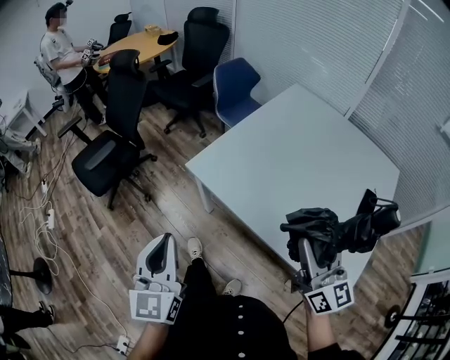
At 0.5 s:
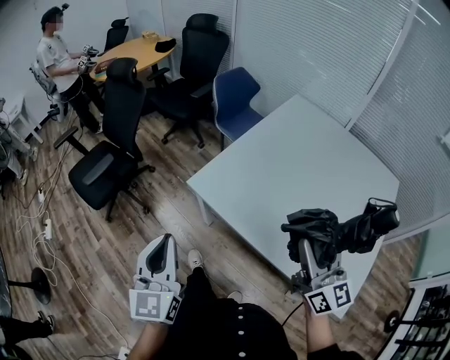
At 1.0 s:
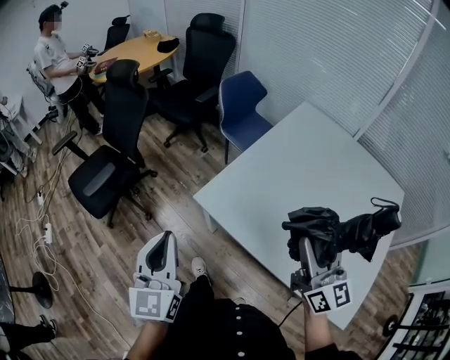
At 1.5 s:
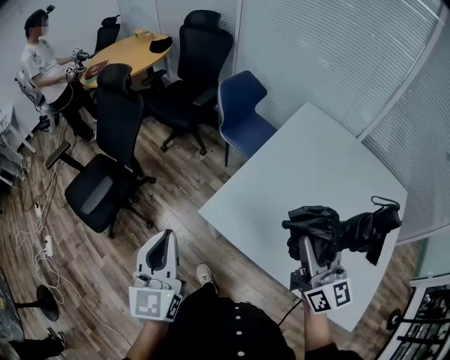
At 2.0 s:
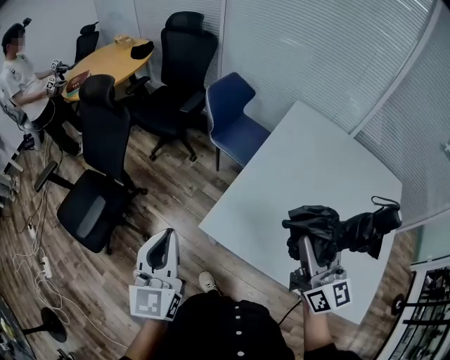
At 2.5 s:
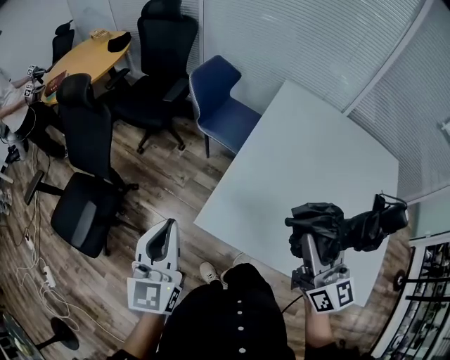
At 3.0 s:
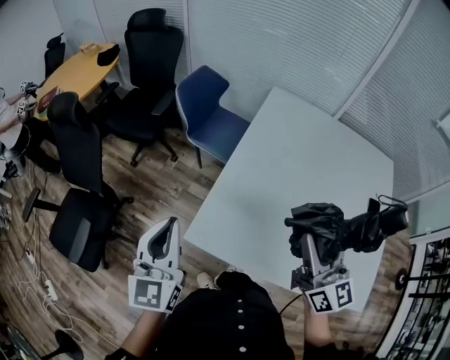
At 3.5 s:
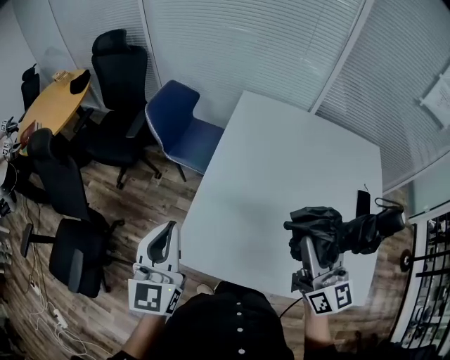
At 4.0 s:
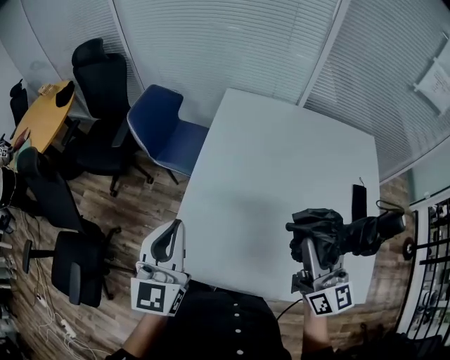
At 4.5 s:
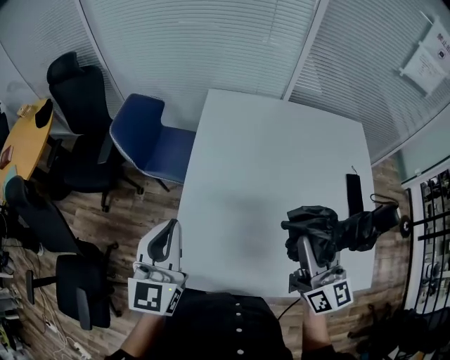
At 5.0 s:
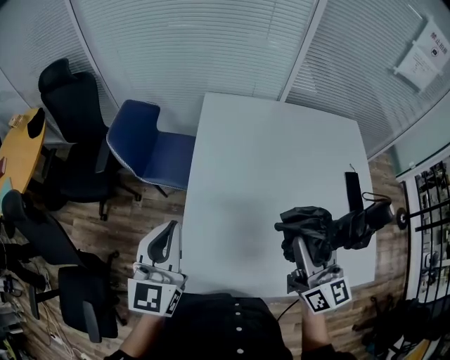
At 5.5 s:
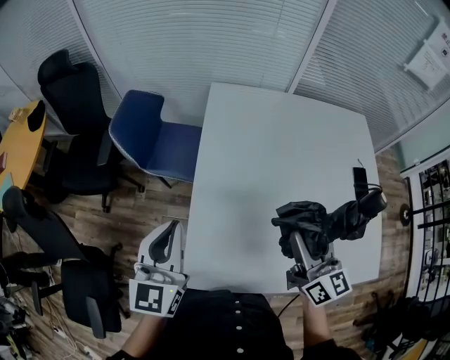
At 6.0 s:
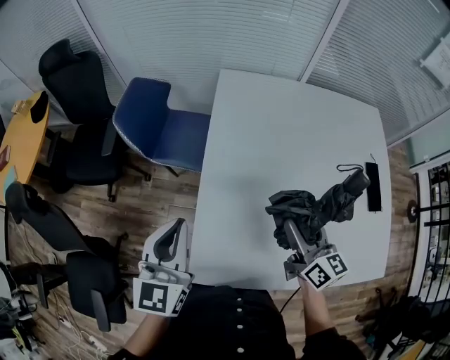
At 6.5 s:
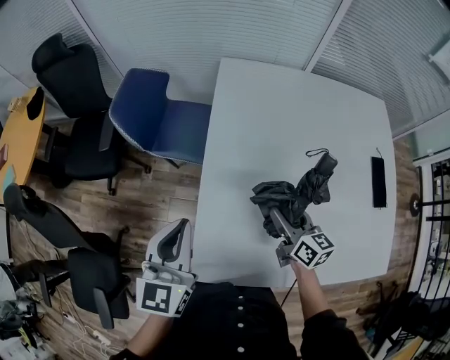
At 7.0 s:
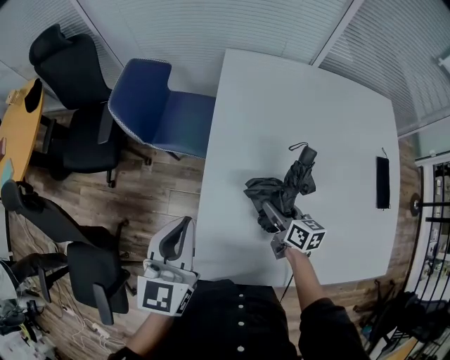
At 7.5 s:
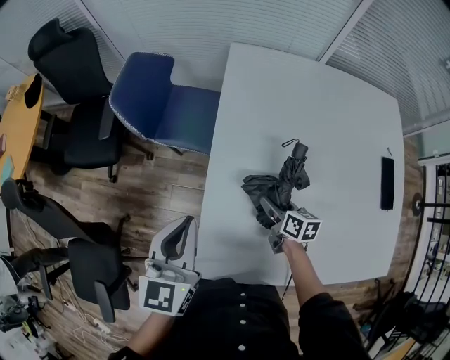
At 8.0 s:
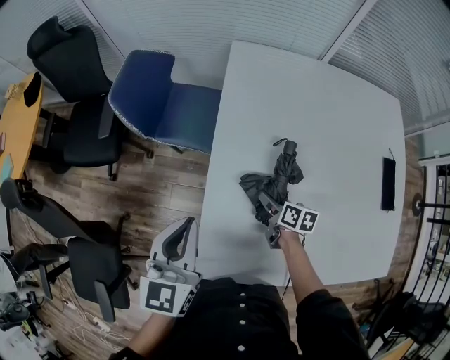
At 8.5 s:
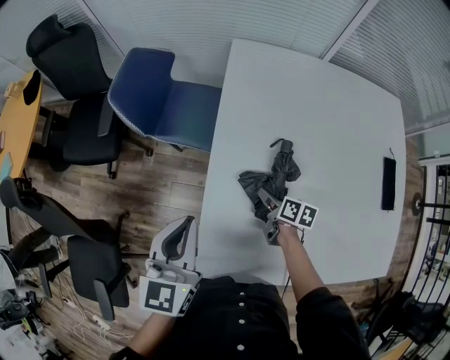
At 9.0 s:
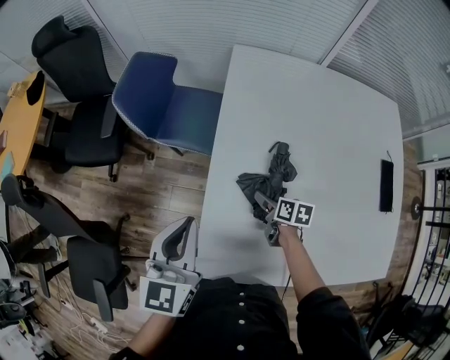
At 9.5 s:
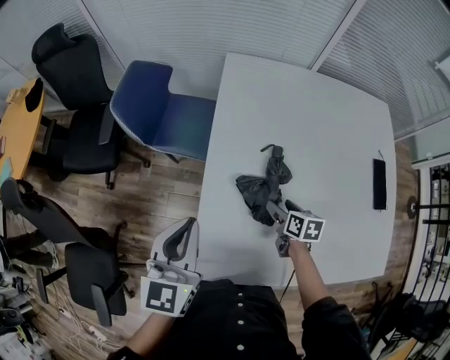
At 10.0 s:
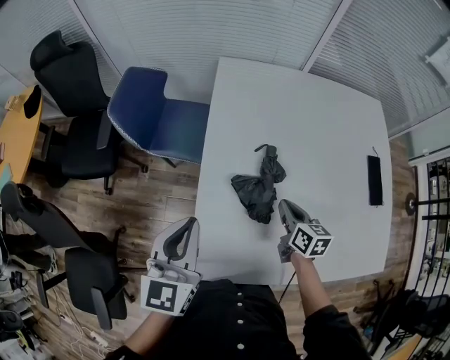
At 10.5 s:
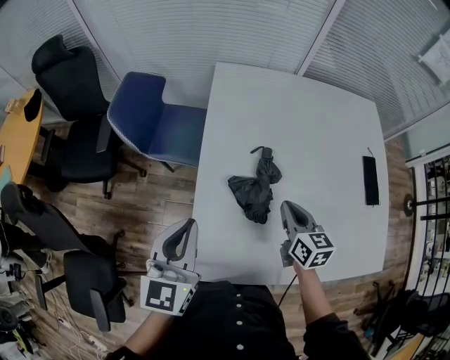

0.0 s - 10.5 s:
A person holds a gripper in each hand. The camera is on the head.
0.0 s - 2.0 s: The right gripper travels forward and to the left by about 25 cm. The left gripper goes some 30 cm forward.
2.0 s - 4.0 s: The right gripper goes roughly 15 cm to the right, and rotates about 20 degrees; the left gripper travels to the right and forward by approximately 25 cm, and swivels some 20 degrees.
4.0 s - 6.5 s: The left gripper is displaced forward, to the left and downward by some 10 cm; the right gripper moves downward, to the left and forward, about 25 cm, and rotates some 30 degrees.
6.5 s - 8.5 s: The right gripper is displaced downward by roughly 15 cm, and swivels about 30 degrees.
8.5 s - 10.5 s: The left gripper shifts by some 5 cm; the right gripper shifts about 20 cm upward, turns by roughly 40 degrees, and closes.

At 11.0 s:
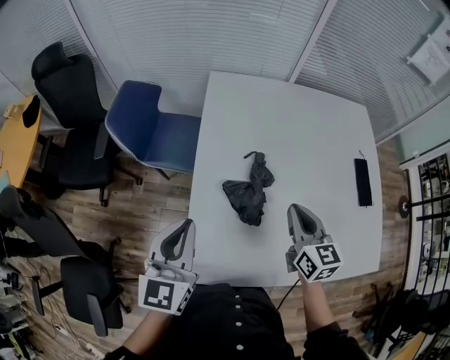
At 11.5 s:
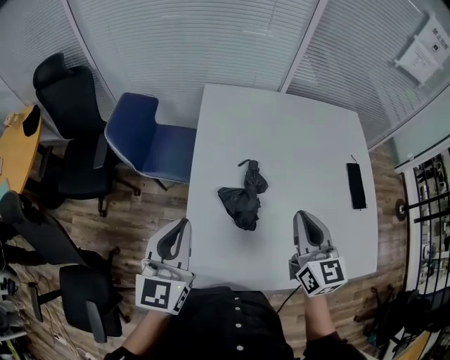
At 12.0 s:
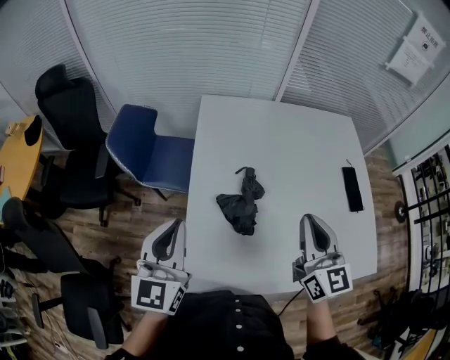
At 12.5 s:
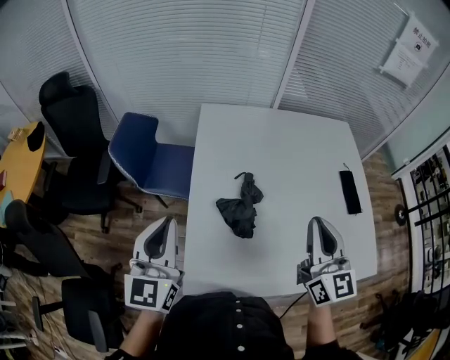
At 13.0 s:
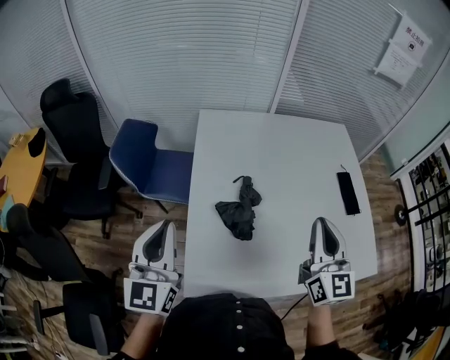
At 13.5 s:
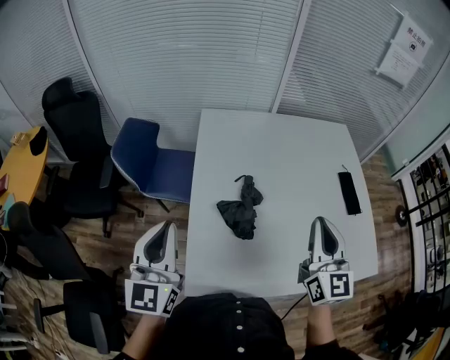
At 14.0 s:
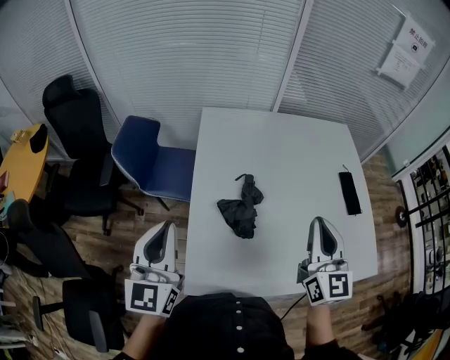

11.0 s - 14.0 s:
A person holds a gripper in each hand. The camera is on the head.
11.0 s - 12.5 s: The left gripper is displaced upward by approximately 5 cm. The right gripper moves upward, roughly 15 cm, and changes its angle by approximately 20 degrees.
12.5 s - 14.0 s: There are only small adjustments of the grippers.

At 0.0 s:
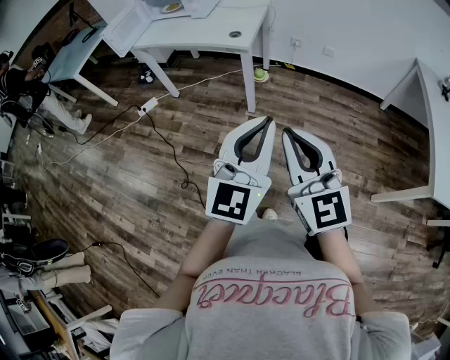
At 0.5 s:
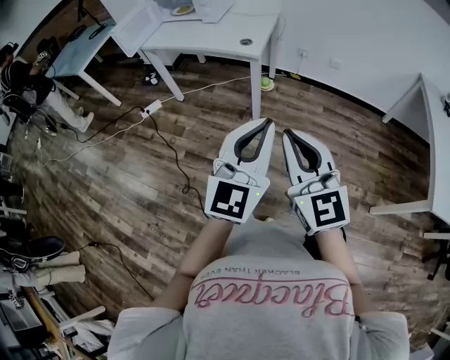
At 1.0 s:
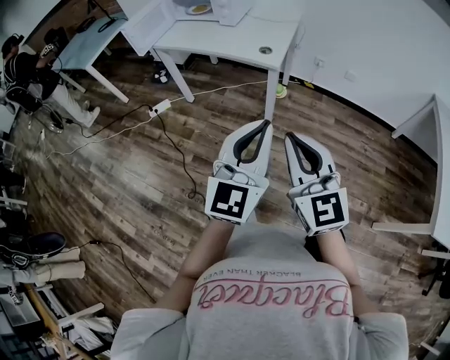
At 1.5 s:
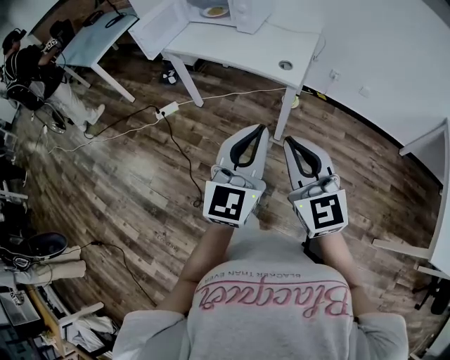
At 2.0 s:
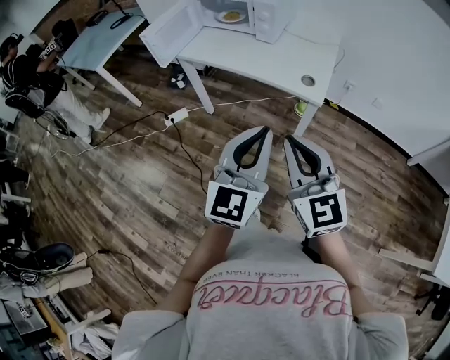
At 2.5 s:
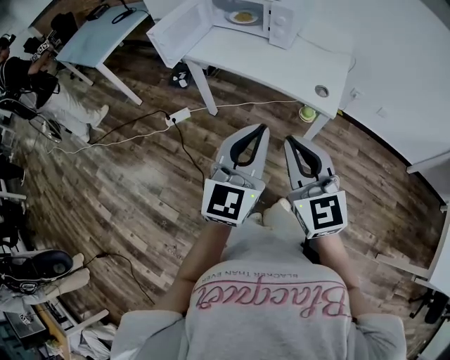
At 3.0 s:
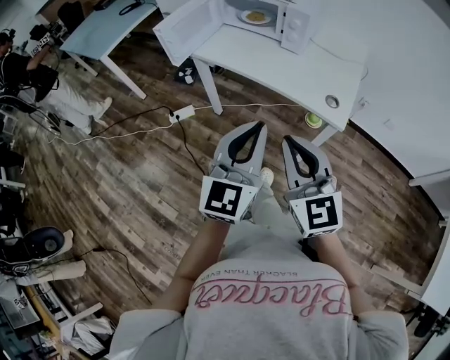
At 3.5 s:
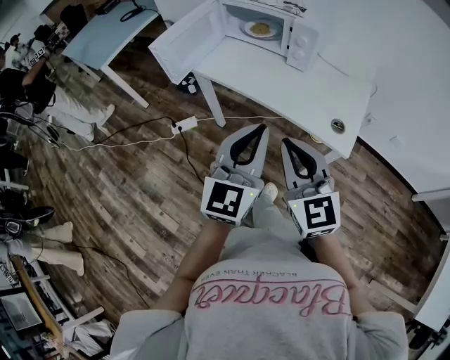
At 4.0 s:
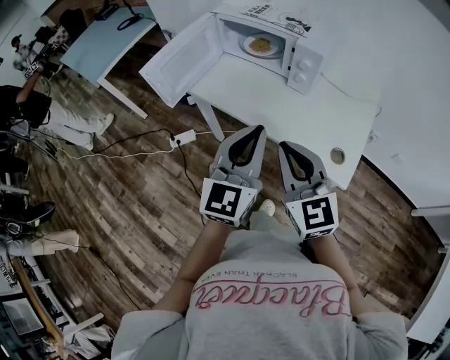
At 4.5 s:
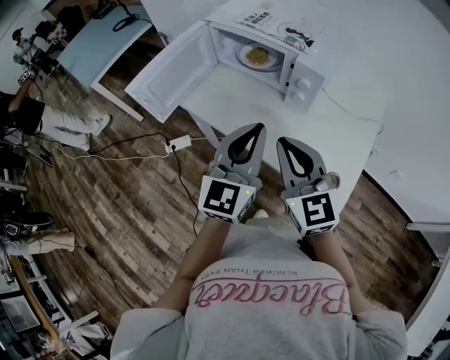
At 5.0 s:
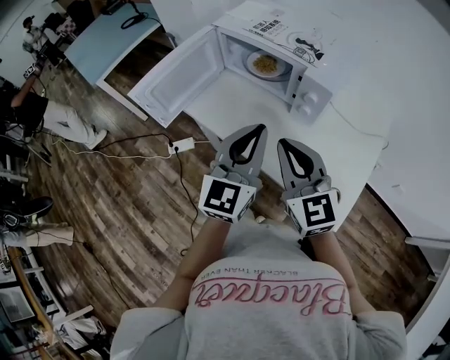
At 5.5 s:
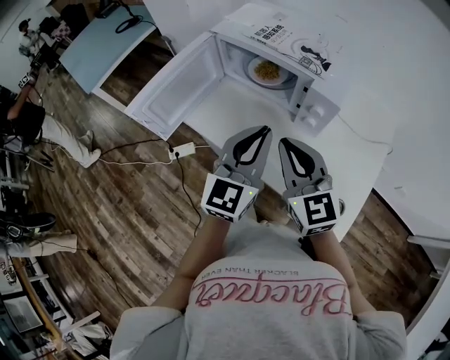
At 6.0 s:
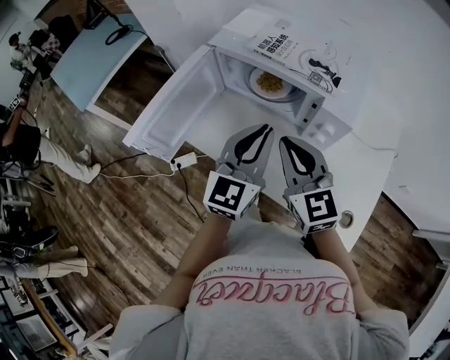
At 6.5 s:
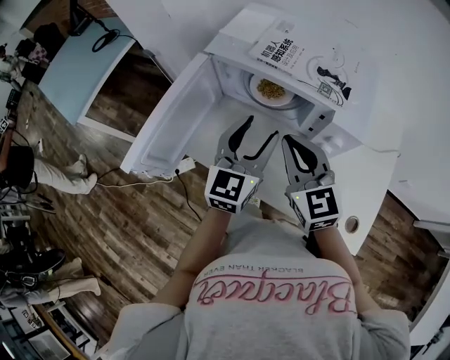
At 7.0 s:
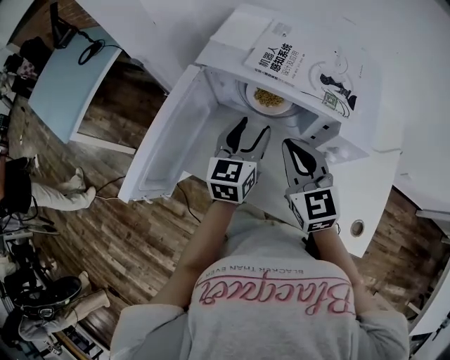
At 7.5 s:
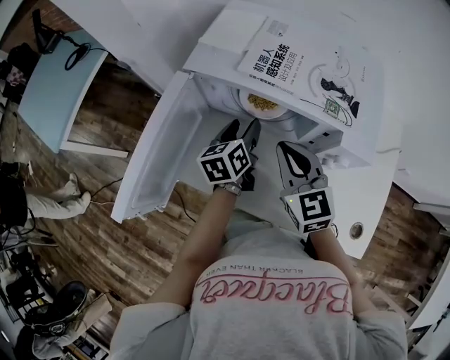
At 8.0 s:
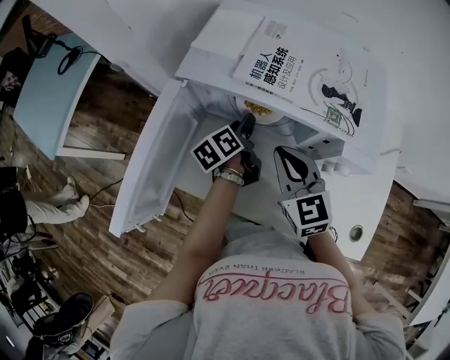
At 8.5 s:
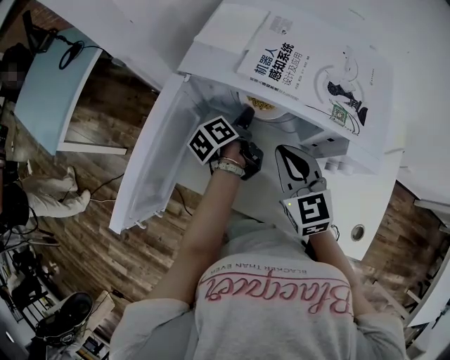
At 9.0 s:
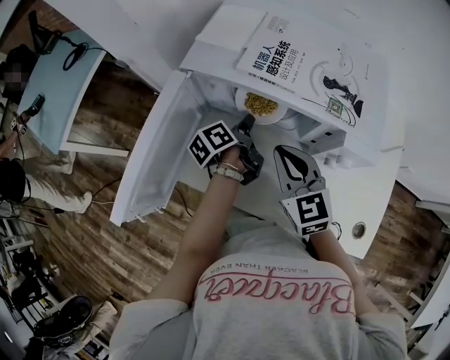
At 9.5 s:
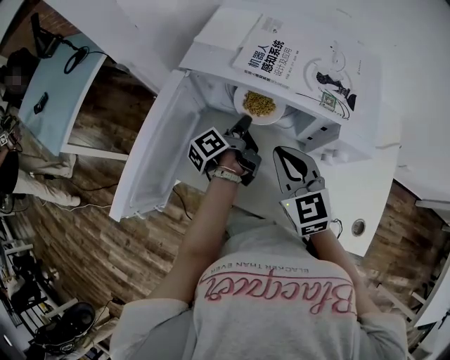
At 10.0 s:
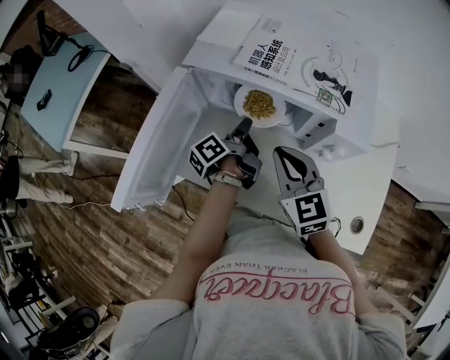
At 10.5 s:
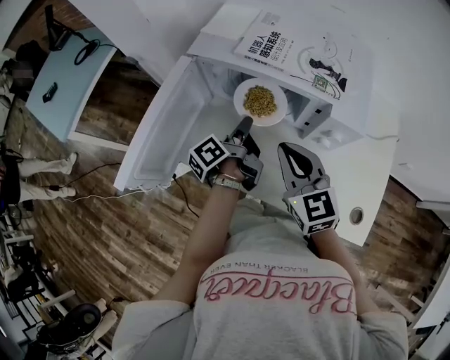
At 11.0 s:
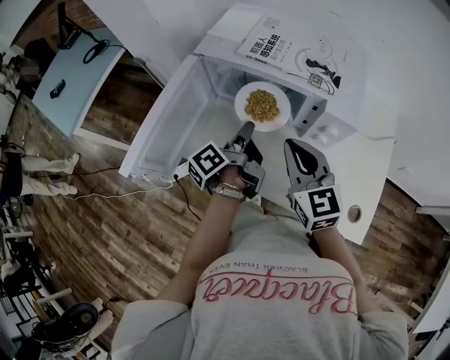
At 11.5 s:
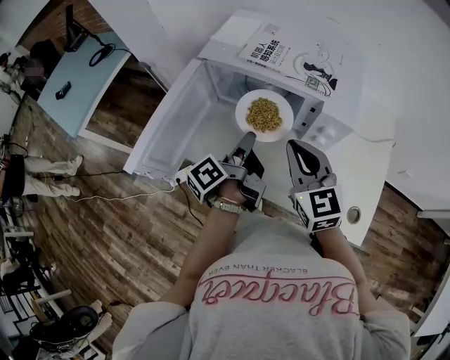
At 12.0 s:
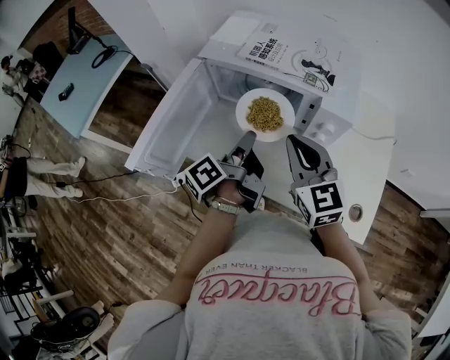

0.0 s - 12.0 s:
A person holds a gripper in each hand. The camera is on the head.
0.0 s - 2.0 s: The two grippers go about 35 cm forward and to the left.
2.0 s - 4.0 s: The two grippers go about 30 cm forward.
4.0 s - 6.0 s: Both grippers move forward, about 25 cm.
6.0 s - 8.0 s: The right gripper heads forward and downward, covering about 15 cm; the left gripper travels forward and downward by approximately 30 cm, rolls counterclockwise, seen from behind, by approximately 60 degrees, and opens.
8.0 s - 10.0 s: The left gripper shifts by approximately 5 cm, swivels about 30 degrees, and closes up.
10.0 s - 12.0 s: The right gripper travels upward and backward by about 10 cm; the left gripper heads backward and upward, covering about 15 cm.

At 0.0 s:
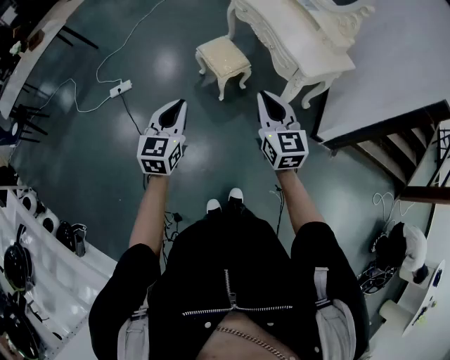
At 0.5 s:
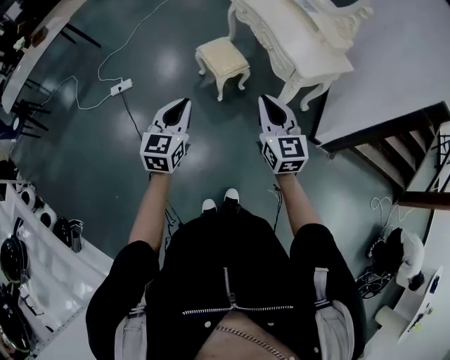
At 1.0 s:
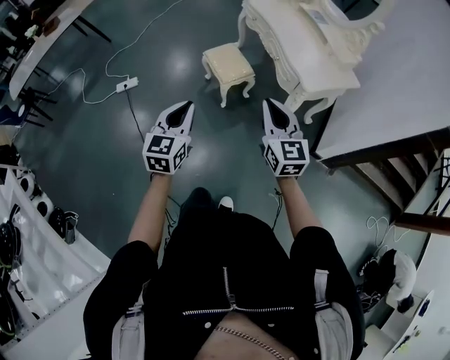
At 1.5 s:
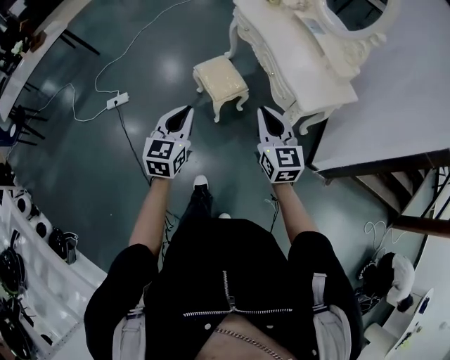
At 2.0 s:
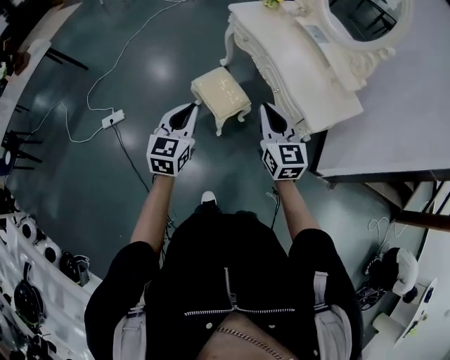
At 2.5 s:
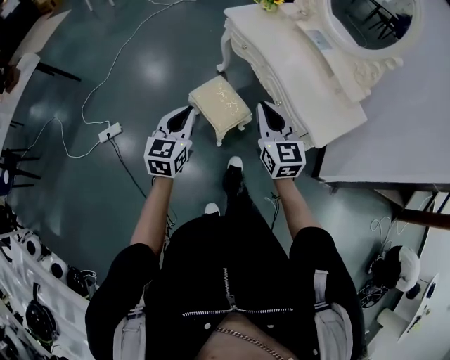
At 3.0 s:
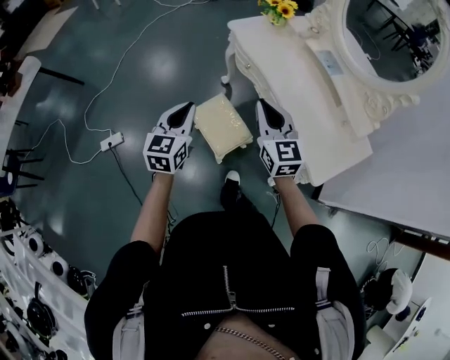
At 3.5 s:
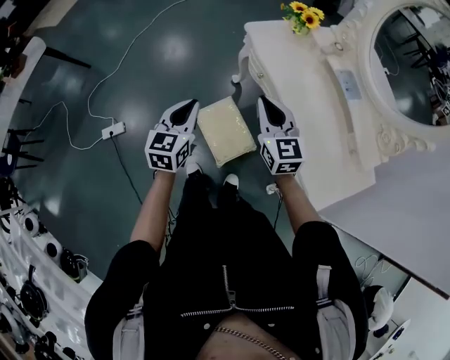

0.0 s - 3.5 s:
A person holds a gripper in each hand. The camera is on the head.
0.0 s - 2.0 s: Both grippers travel together forward, about 30 cm.
2.0 s - 3.5 s: The grippers both shift forward by roughly 35 cm.
